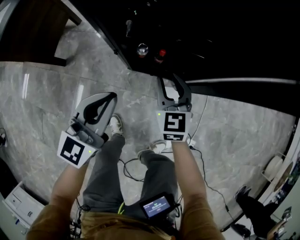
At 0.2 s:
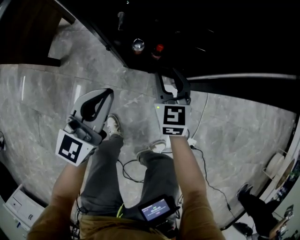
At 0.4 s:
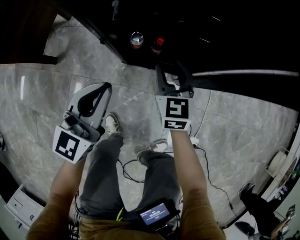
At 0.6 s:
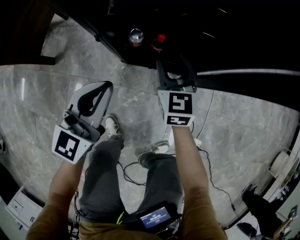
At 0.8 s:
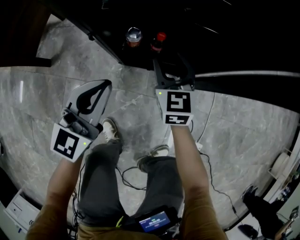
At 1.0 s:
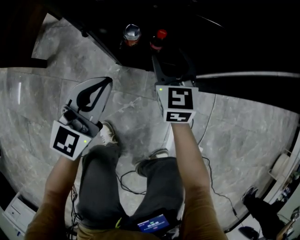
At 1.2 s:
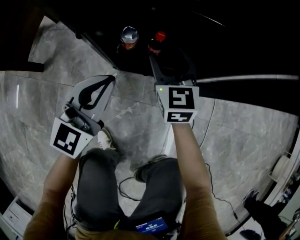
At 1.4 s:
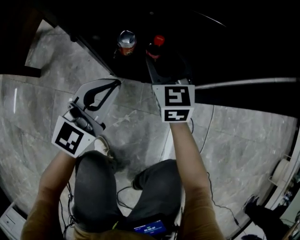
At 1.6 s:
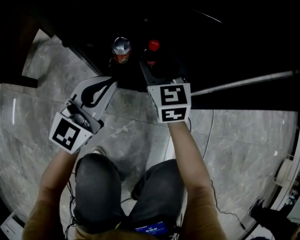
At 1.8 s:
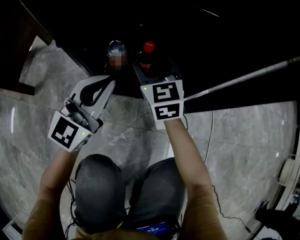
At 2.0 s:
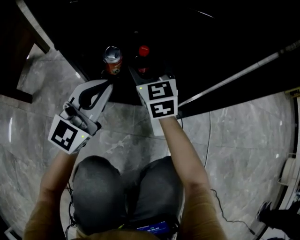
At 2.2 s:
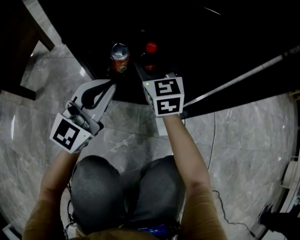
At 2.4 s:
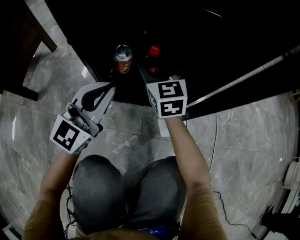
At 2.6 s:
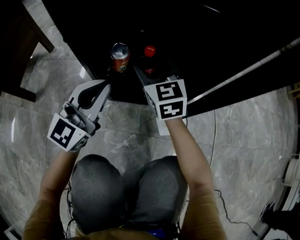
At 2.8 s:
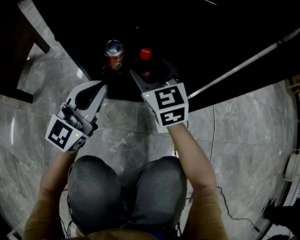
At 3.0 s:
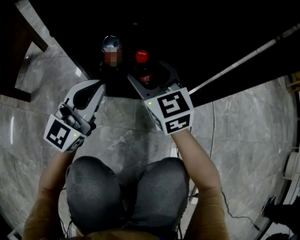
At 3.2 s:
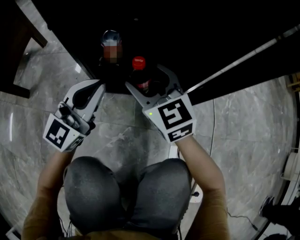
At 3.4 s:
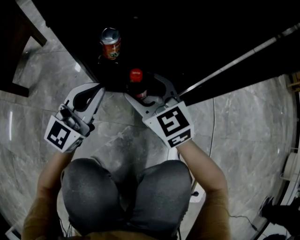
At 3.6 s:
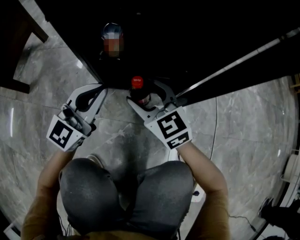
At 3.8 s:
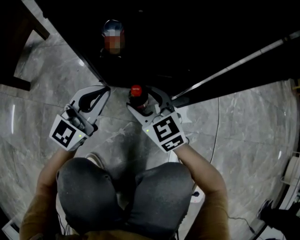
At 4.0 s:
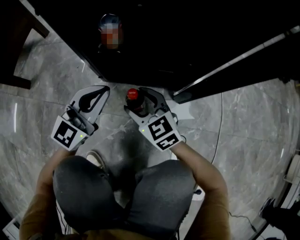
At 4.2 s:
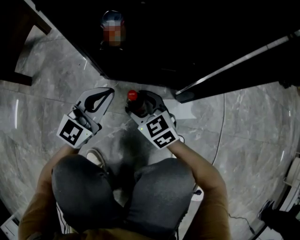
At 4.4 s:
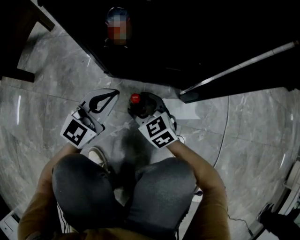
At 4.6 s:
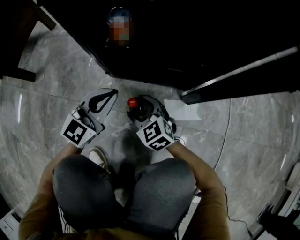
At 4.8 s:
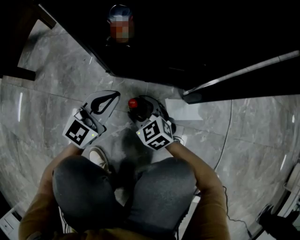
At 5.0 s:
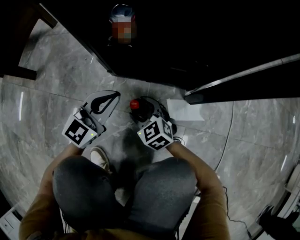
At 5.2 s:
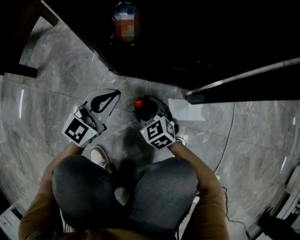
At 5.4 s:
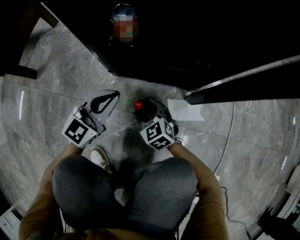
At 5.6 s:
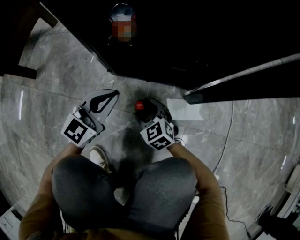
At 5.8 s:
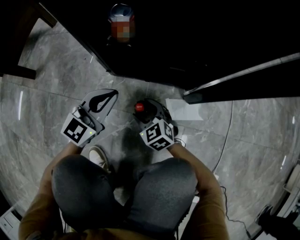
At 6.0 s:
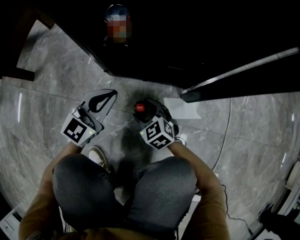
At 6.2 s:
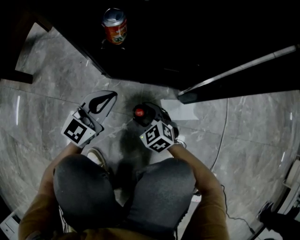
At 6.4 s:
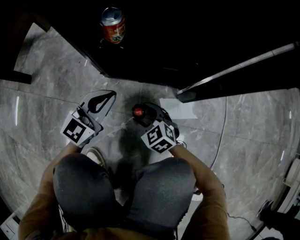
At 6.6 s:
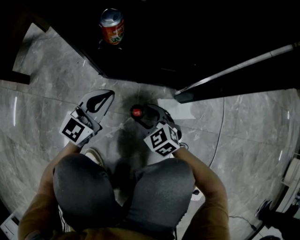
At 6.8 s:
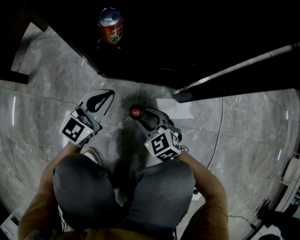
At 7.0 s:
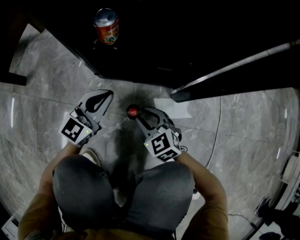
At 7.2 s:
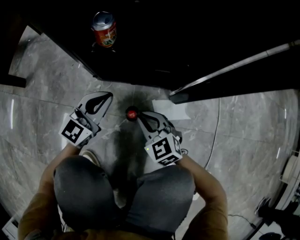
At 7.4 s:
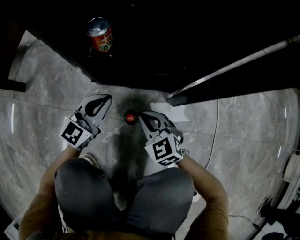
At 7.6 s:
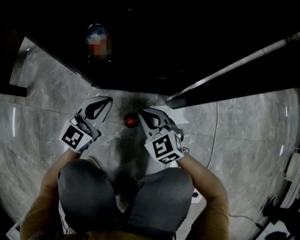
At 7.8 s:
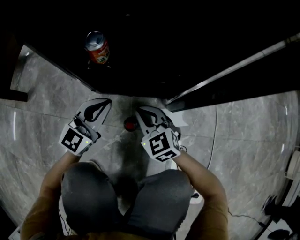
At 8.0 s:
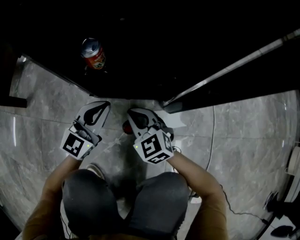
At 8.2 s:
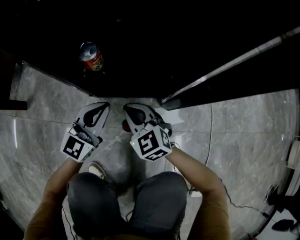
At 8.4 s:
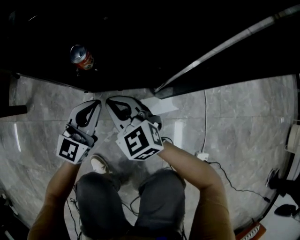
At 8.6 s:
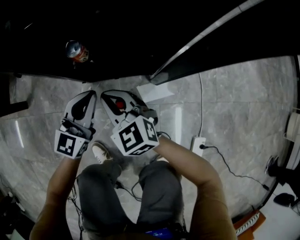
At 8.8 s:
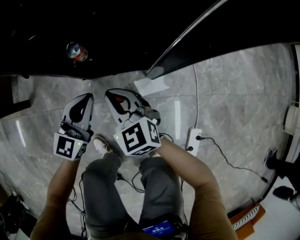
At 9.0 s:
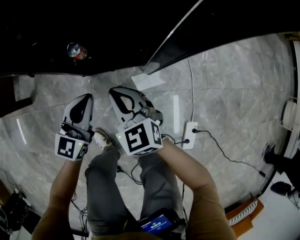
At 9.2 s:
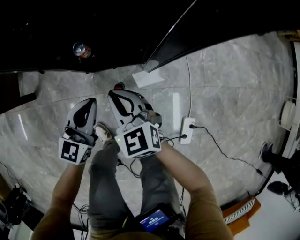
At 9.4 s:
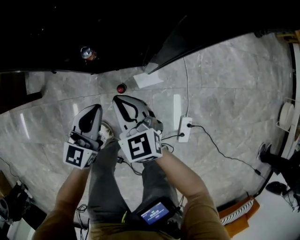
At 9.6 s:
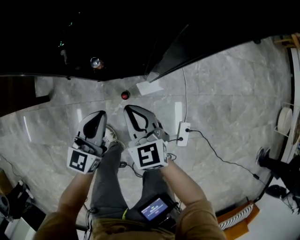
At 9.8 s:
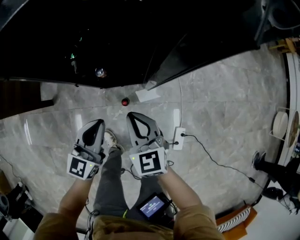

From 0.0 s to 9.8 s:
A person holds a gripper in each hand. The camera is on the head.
From 0.0 s to 1.4 s: The left gripper shifts some 25 cm downward, while the right gripper shifts approximately 25 cm downward and forward, and opens.
From 1.4 s to 2.8 s: The left gripper is displaced downward by roughly 5 cm.
From 2.8 s to 4.2 s: The right gripper travels downward and backward by about 25 cm, and swivels about 30 degrees. Meanwhile the left gripper heads downward, covering some 15 cm.
From 4.2 s to 5.6 s: The right gripper shifts roughly 10 cm downward.
From 5.6 s to 7.0 s: The right gripper moves upward, some 5 cm, and closes up.
From 7.0 s to 8.4 s: The left gripper moves upward, some 10 cm; the right gripper moves upward, about 20 cm, and closes.
From 8.4 s to 9.8 s: The grippers both shift upward by roughly 40 cm. The right gripper swivels approximately 20 degrees.

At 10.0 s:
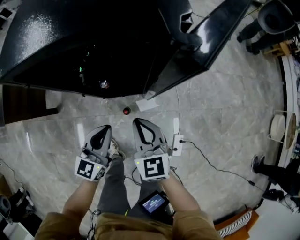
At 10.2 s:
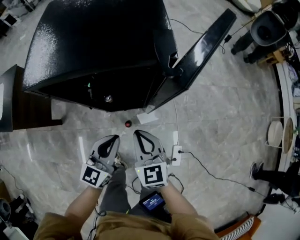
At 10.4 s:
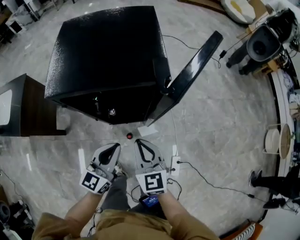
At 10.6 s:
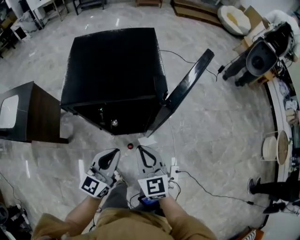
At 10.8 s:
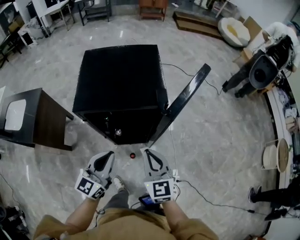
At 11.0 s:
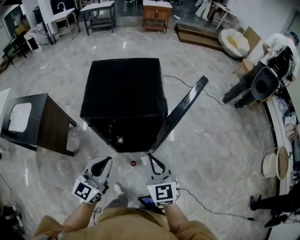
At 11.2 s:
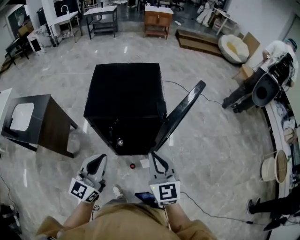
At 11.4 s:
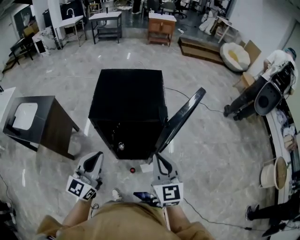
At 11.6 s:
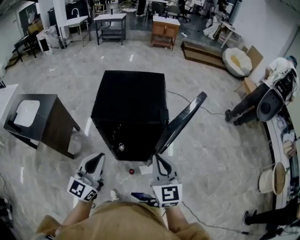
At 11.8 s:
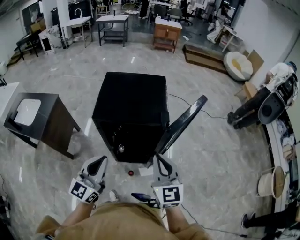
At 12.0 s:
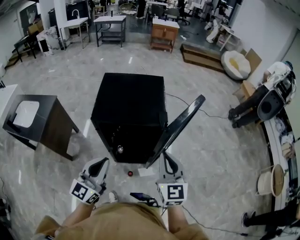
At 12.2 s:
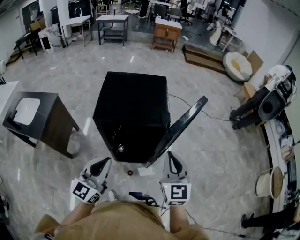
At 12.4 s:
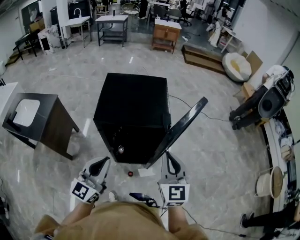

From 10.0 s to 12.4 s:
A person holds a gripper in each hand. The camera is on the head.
From 10.0 s to 11.2 s: The two grippers go some 35 cm upward.
From 11.2 s to 12.4 s: The right gripper travels upward by some 5 cm.

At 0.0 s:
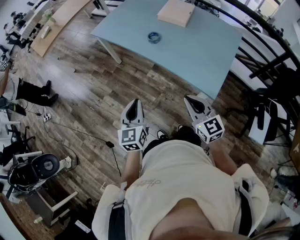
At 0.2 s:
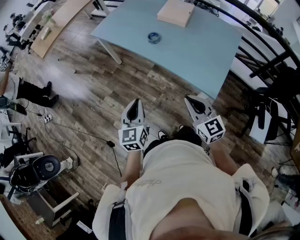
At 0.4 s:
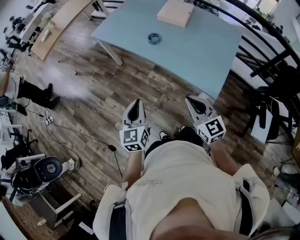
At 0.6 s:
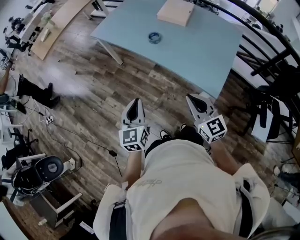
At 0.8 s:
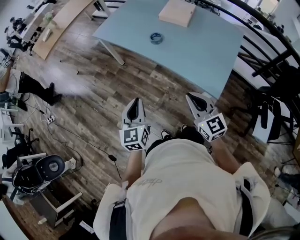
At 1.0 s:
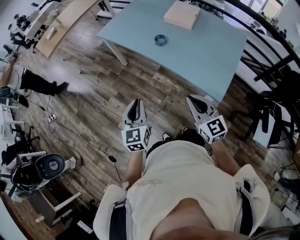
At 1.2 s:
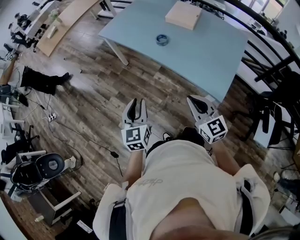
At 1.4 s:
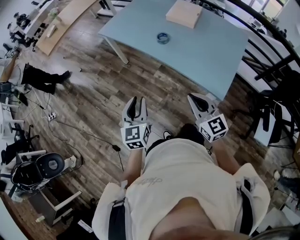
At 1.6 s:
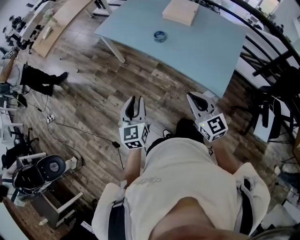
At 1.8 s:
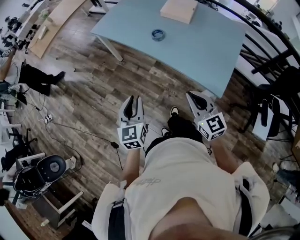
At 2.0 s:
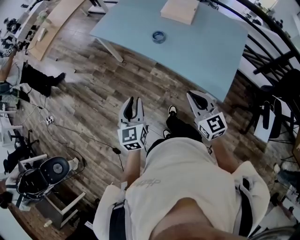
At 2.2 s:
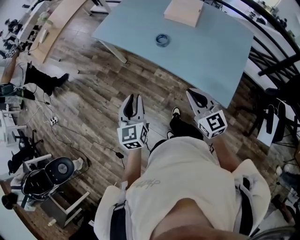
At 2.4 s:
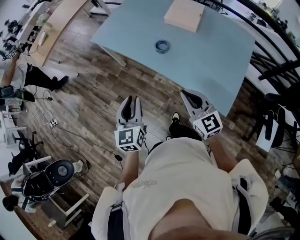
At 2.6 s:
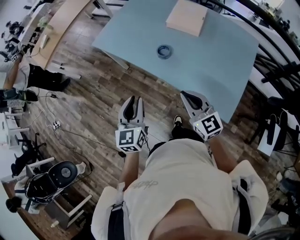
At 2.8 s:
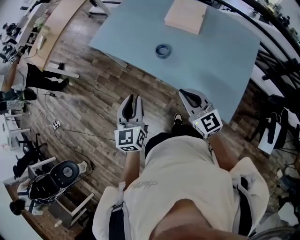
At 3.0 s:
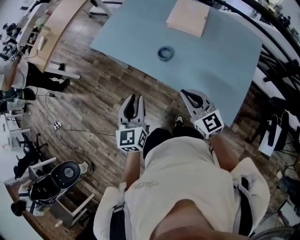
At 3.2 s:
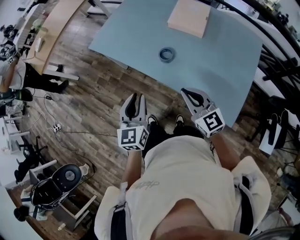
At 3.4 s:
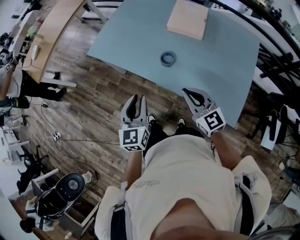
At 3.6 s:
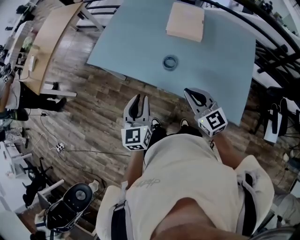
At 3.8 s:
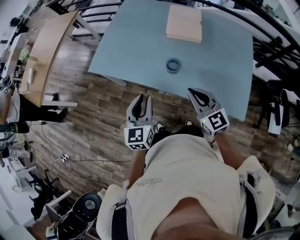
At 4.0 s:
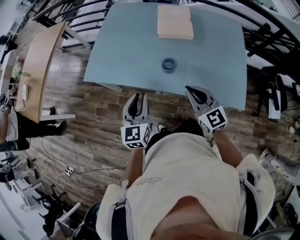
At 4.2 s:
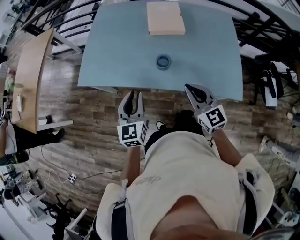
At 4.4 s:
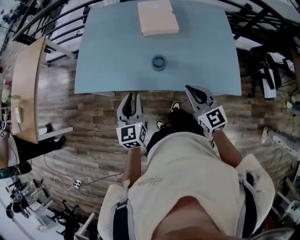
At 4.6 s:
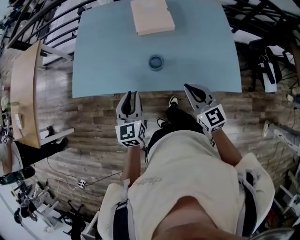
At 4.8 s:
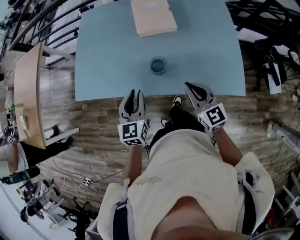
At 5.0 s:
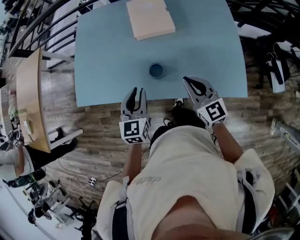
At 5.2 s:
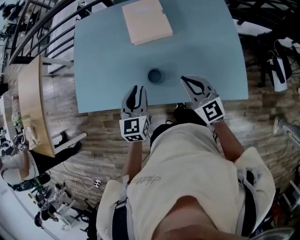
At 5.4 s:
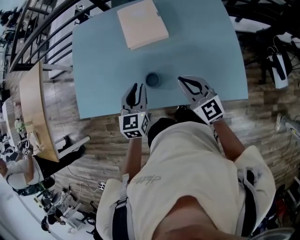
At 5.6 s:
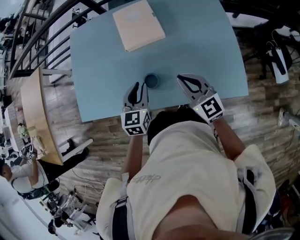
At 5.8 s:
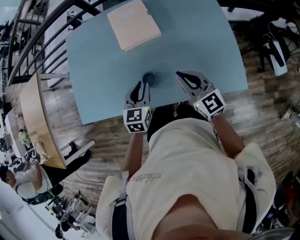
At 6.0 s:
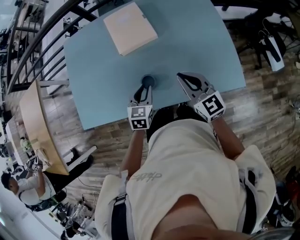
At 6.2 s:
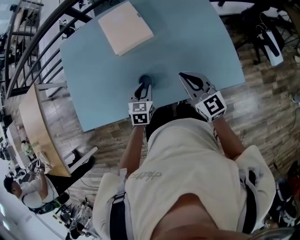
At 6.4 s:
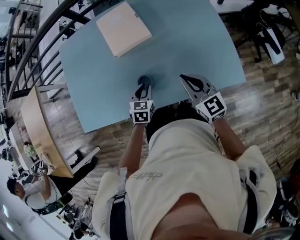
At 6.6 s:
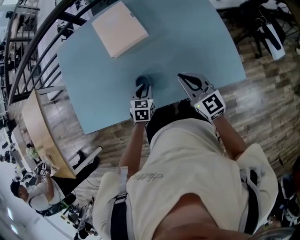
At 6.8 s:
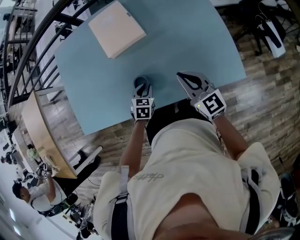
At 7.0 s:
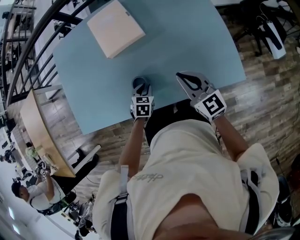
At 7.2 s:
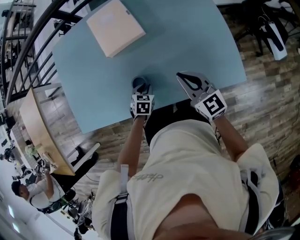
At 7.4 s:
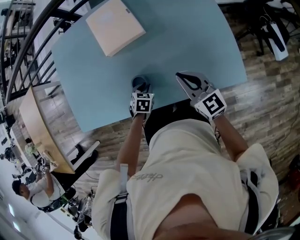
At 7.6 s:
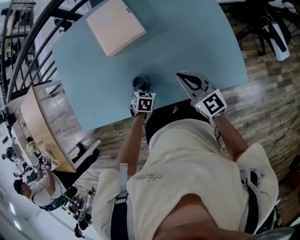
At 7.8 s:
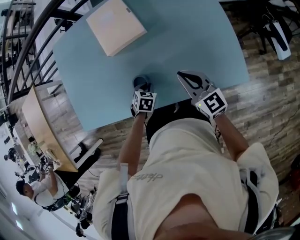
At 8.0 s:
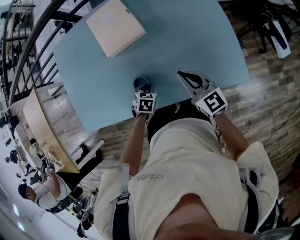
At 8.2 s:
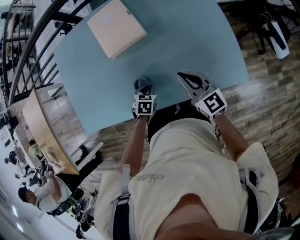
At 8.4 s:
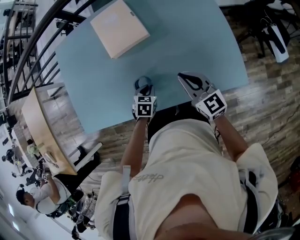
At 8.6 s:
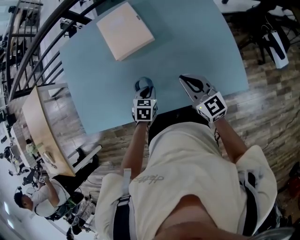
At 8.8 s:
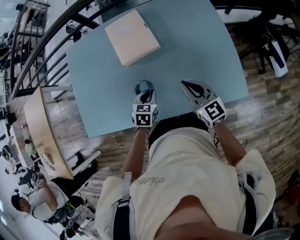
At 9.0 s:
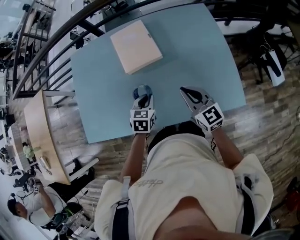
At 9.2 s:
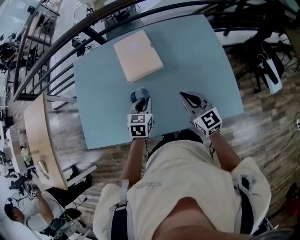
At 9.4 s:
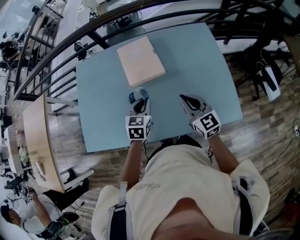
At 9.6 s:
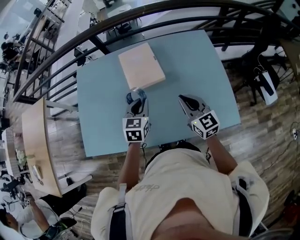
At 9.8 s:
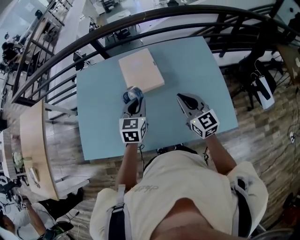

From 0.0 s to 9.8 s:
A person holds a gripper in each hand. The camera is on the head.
From 0.0 s to 1.4 s: There are only small adjustments of the grippers.
From 1.4 s to 2.8 s: Both grippers move forward, approximately 20 cm.
From 2.8 s to 4.2 s: The left gripper ends up some 20 cm from where it was, and rotates roughly 30 degrees. Meanwhile the right gripper changes place by approximately 10 cm, and rotates about 30 degrees.
From 4.2 s to 5.6 s: The two grippers go about 20 cm forward and to the right. The left gripper changes its angle by approximately 20 degrees.
From 5.6 s to 7.0 s: The left gripper moves downward, approximately 20 cm, and tilts its fingers about 30 degrees downward; the right gripper travels to the right by roughly 5 cm.
From 7.0 s to 8.4 s: The grippers stay close to where they were, moving slightly.
From 8.4 s to 9.8 s: The right gripper is displaced upward and forward by some 10 cm; the left gripper is displaced upward by about 25 cm, and tilts its fingers some 40 degrees upward.

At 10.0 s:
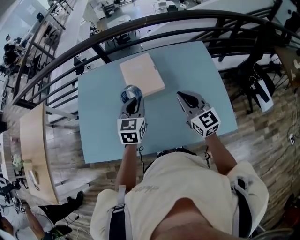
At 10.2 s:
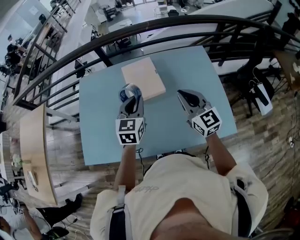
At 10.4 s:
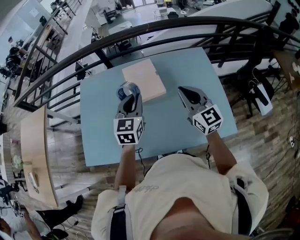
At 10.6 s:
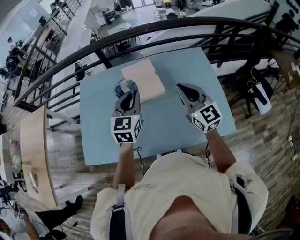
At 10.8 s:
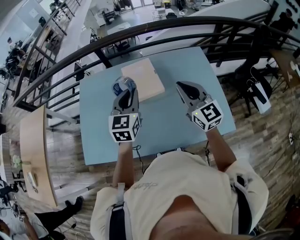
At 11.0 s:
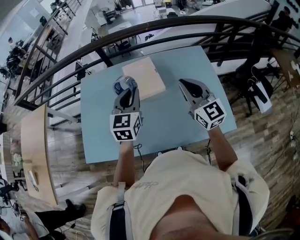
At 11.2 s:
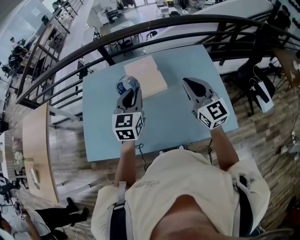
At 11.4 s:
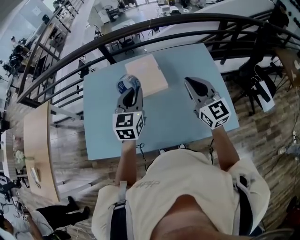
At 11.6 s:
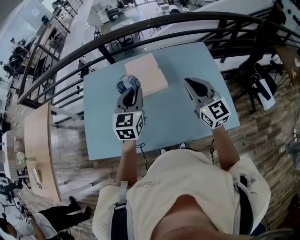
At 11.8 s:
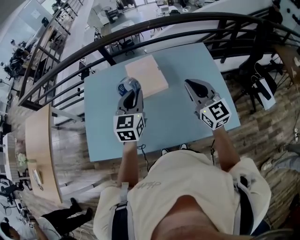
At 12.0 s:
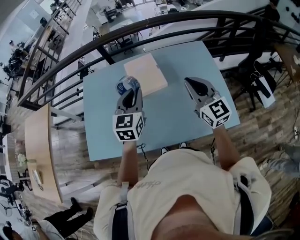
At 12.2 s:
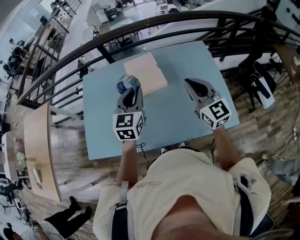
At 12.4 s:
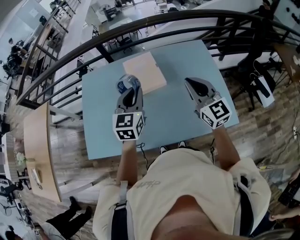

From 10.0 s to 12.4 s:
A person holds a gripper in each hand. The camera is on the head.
From 10.0 s to 11.2 s: The grippers both shift upward by about 10 cm.
From 11.2 s to 12.4 s: The grippers make only small movements.
